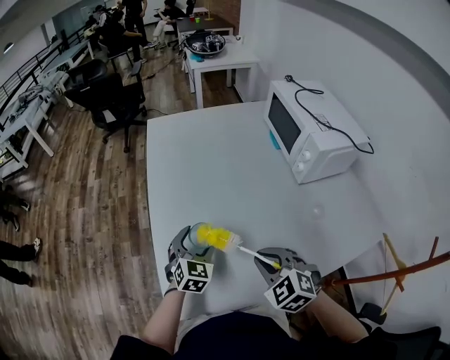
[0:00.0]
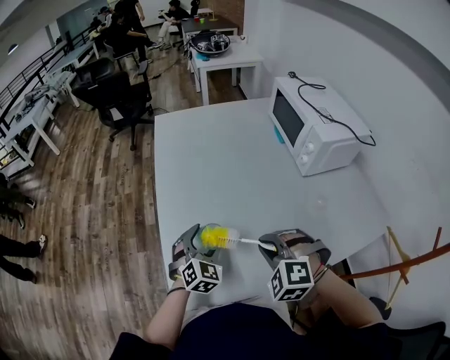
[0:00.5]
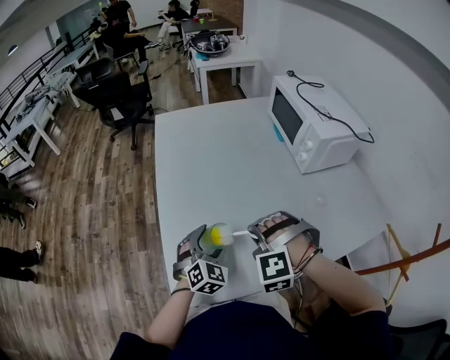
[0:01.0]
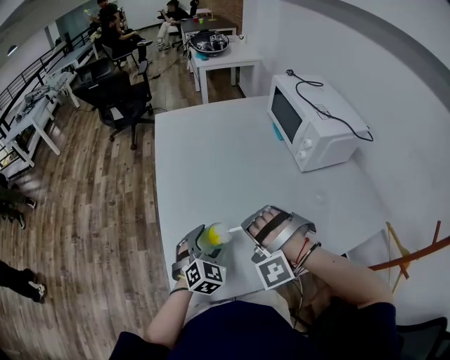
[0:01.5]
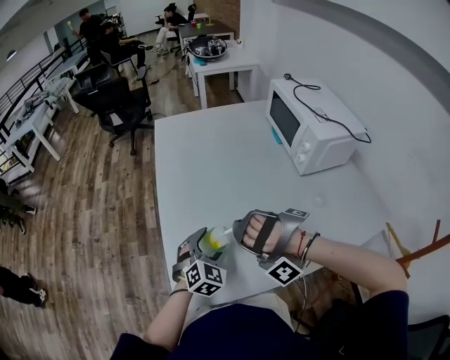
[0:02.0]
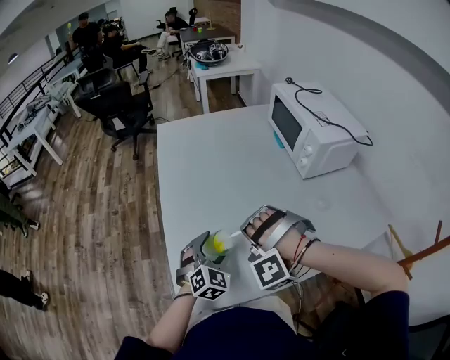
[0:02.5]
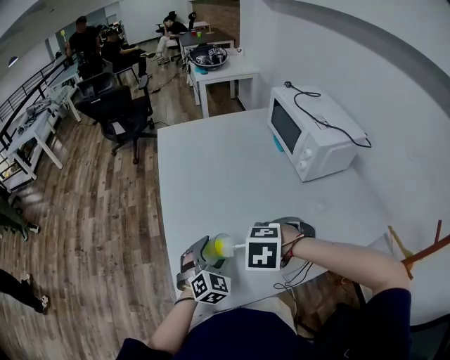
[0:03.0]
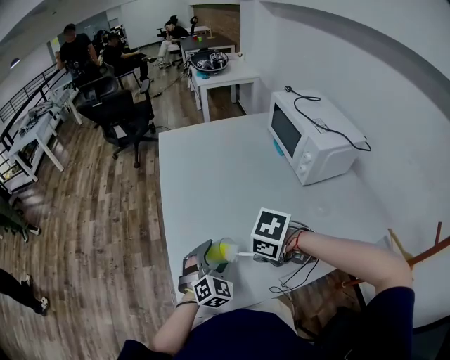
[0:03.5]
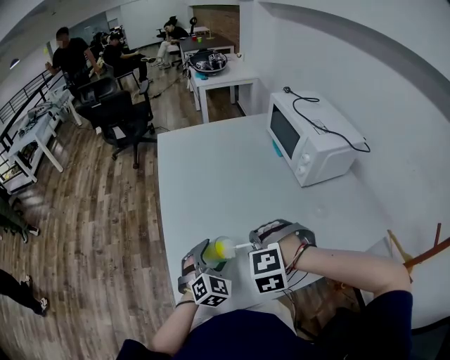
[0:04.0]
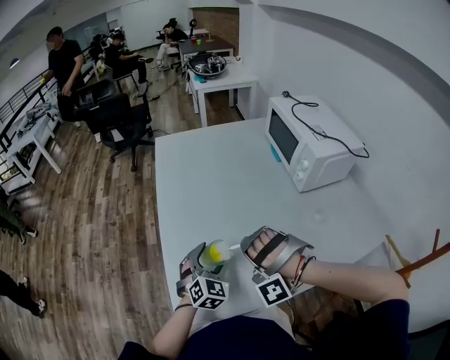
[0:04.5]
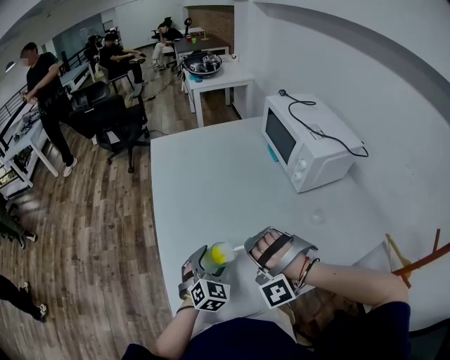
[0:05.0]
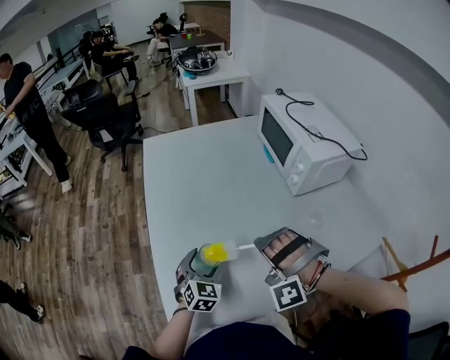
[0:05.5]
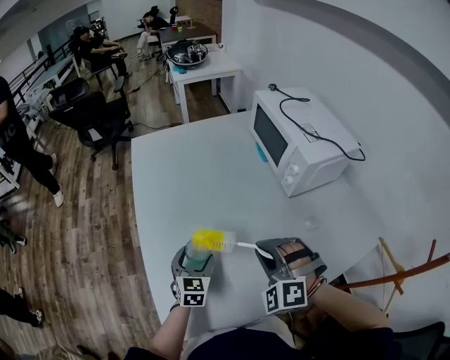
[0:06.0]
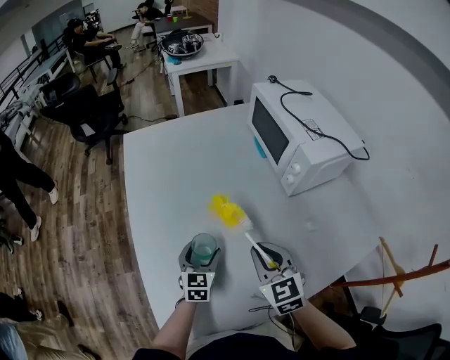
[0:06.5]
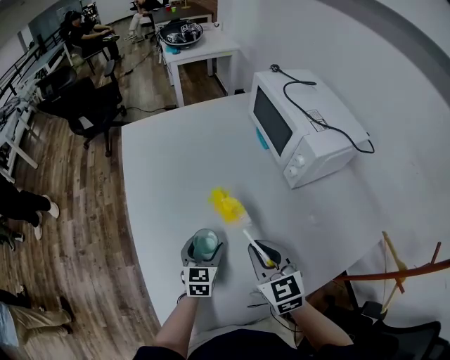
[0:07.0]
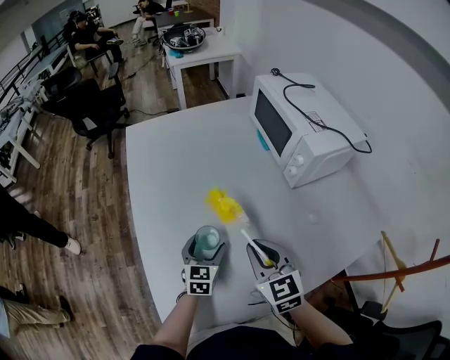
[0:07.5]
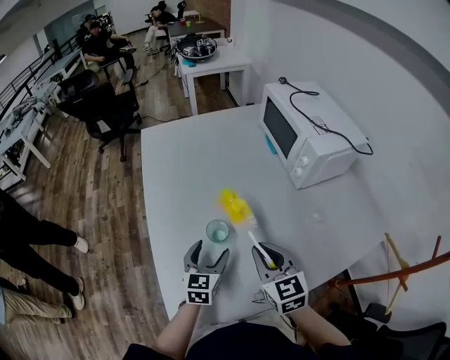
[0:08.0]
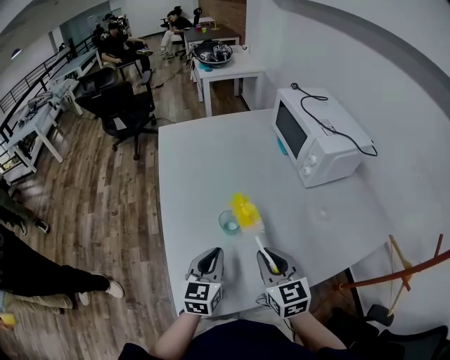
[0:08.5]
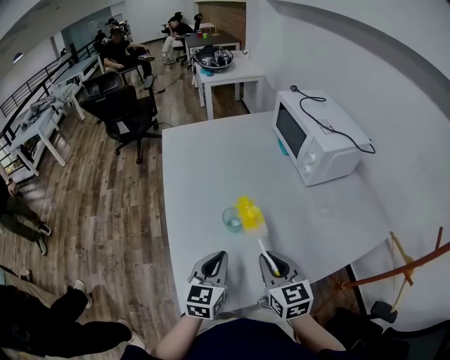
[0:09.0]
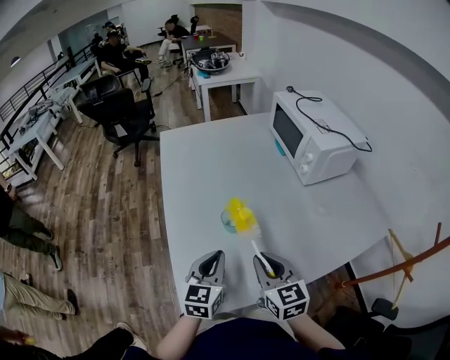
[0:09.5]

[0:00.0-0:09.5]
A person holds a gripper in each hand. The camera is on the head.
0:00.0 to 0:02.0: The right gripper is displaced to the left by approximately 10 cm, and twists some 110 degrees counterclockwise, seen from behind. Meanwhile the left gripper travels backward by about 5 cm.
0:02.0 to 0:04.0: The right gripper shifts by approximately 5 cm, and twists about 60 degrees clockwise, seen from behind.
0:04.0 to 0:05.5: The left gripper ends up about 5 cm from where it was. Meanwhile the right gripper shifts by about 5 cm, and turns by about 30 degrees.
0:05.5 to 0:07.5: The left gripper moves forward, about 5 cm, and rotates approximately 20 degrees, while the right gripper ends up some 5 cm from where it was, and rolls clockwise, seen from behind, by about 100 degrees.
0:07.5 to 0:09.5: The left gripper is displaced backward and upward by roughly 20 cm, and closes its fingers, while the right gripper goes some 10 cm backward.

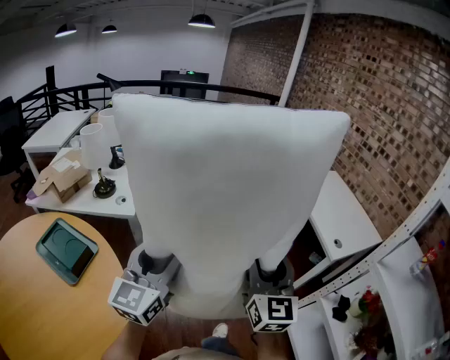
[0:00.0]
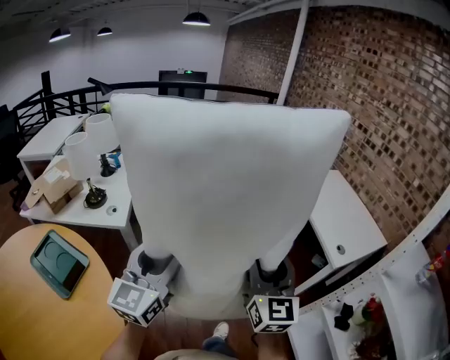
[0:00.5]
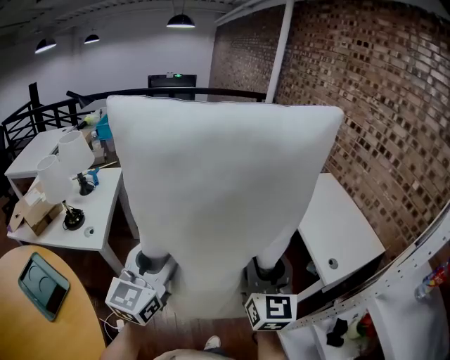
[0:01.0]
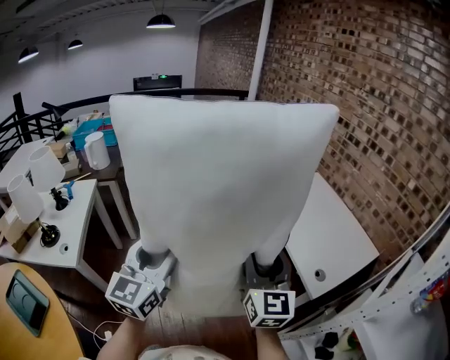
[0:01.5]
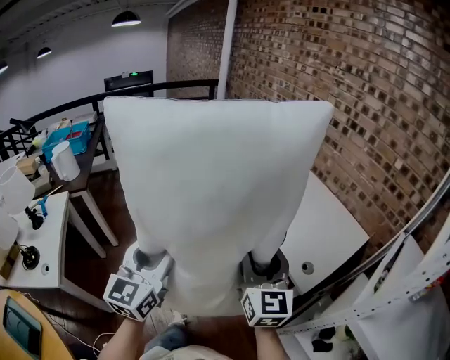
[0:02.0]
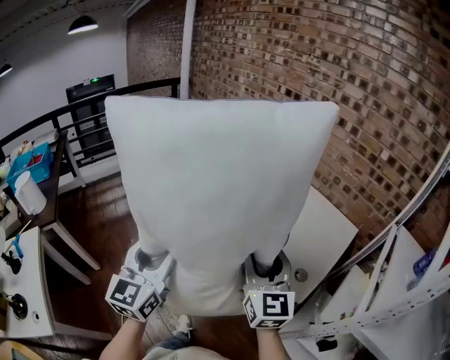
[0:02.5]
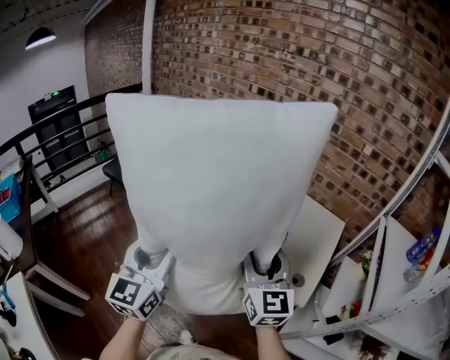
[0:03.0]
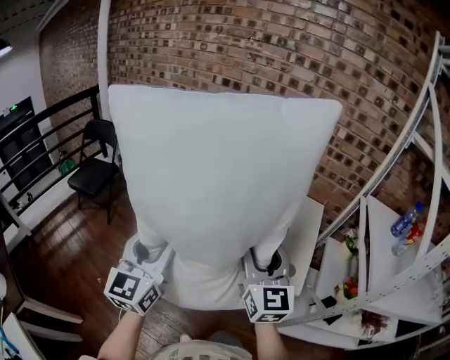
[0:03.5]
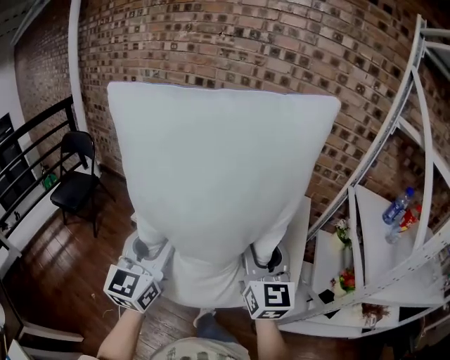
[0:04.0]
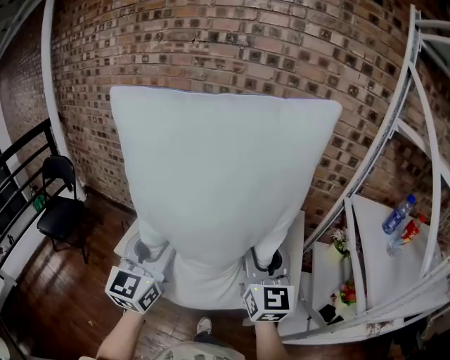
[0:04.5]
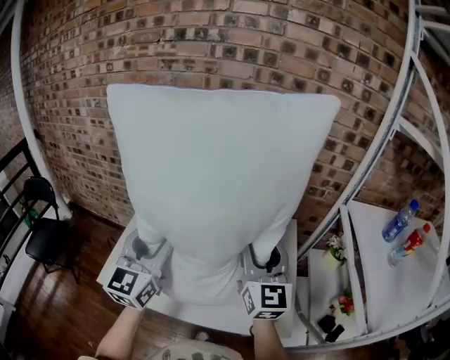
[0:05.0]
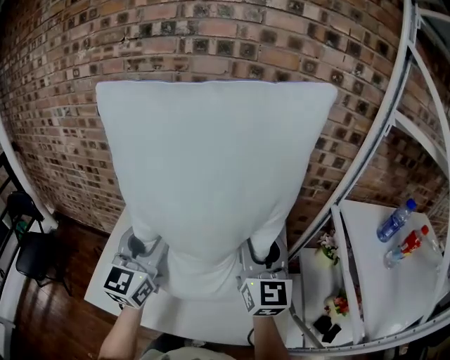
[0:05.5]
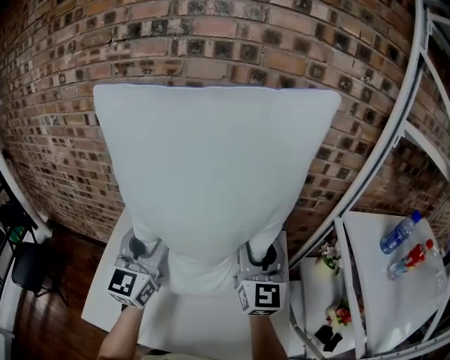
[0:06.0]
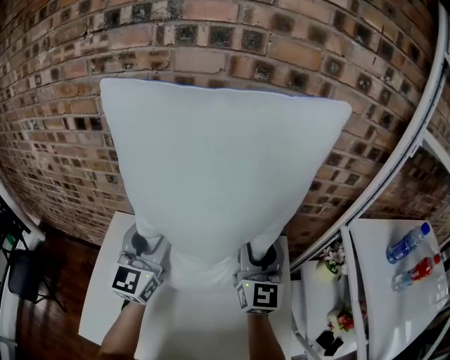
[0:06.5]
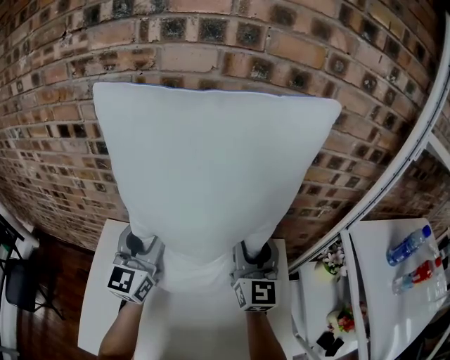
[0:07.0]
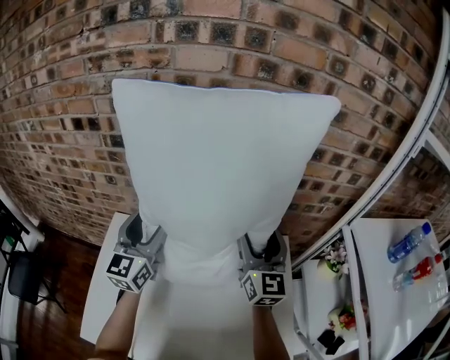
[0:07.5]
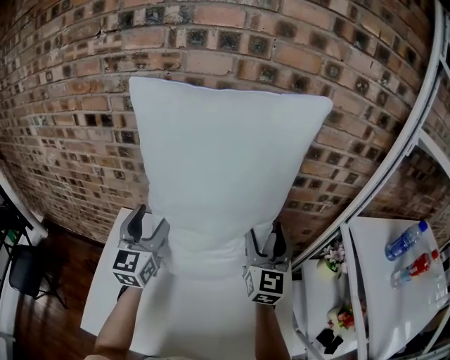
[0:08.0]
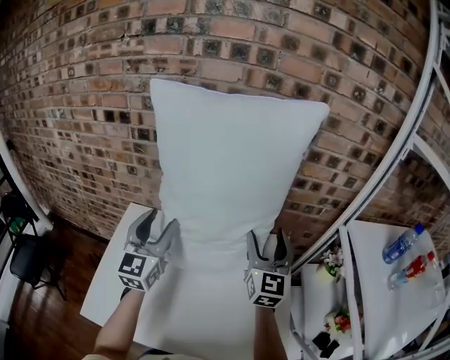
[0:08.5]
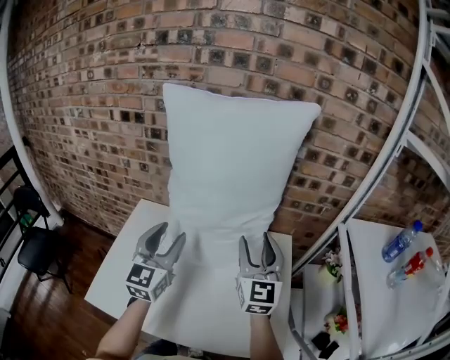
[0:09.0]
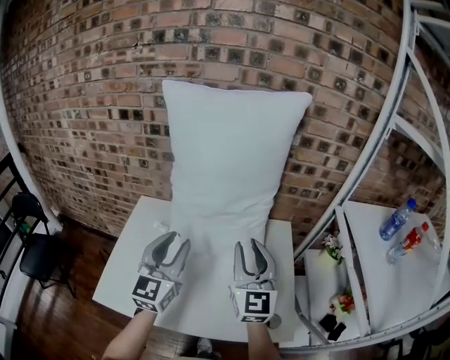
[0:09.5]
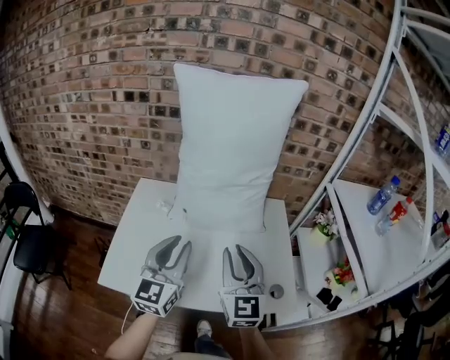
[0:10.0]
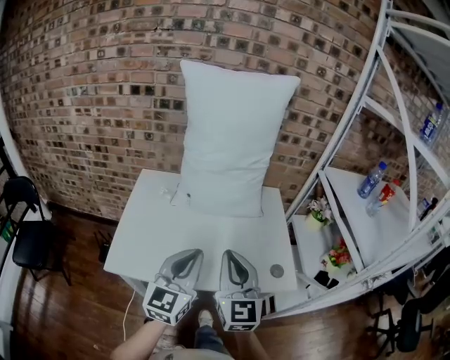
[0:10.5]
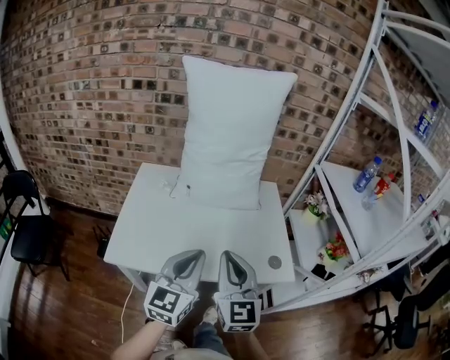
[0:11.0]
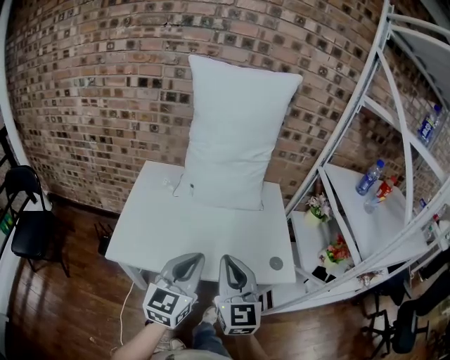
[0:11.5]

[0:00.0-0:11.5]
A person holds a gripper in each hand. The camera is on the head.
0:00.0 to 0:02.0: The pair of grippers is taken forward and to the right, about 40 cm.
0:02.0 to 0:04.0: The right gripper ends up approximately 25 cm from where it was, and rotates approximately 40 degrees; the left gripper moves about 40 cm, and turns by roughly 40 degrees.
0:04.0 to 0:06.0: The two grippers go about 40 cm forward.
0:06.0 to 0:07.5: The two grippers go approximately 15 cm forward and downward. The right gripper opens its fingers.
0:07.5 to 0:09.5: The two grippers go some 20 cm backward. The left gripper closes its fingers. Meanwhile the right gripper closes up.
0:09.5 to 0:11.5: Both grippers move backward, approximately 25 cm. The left gripper closes. The right gripper closes up.

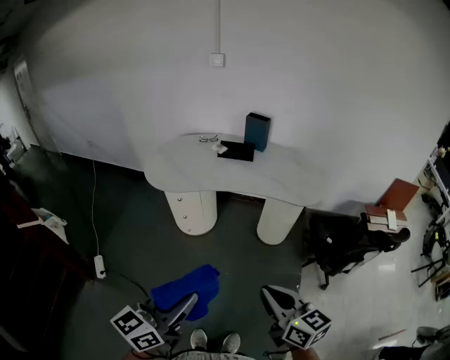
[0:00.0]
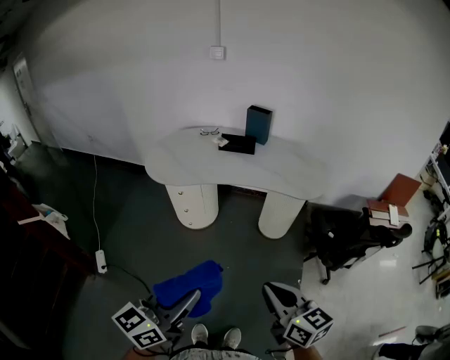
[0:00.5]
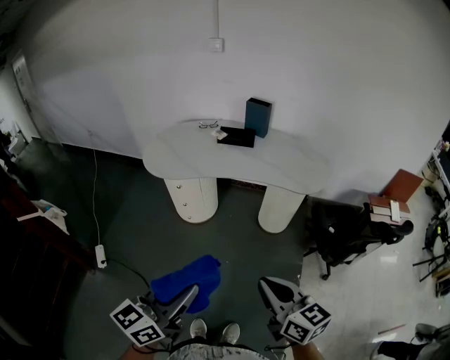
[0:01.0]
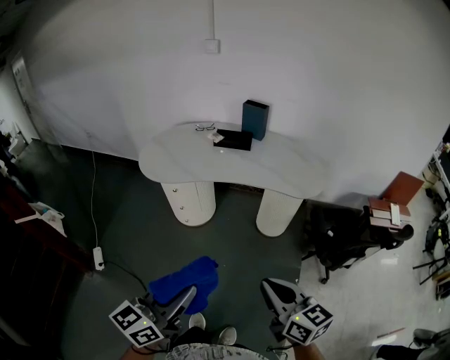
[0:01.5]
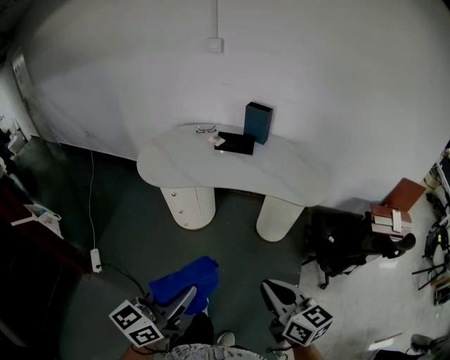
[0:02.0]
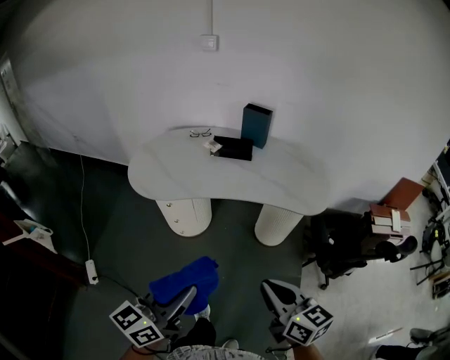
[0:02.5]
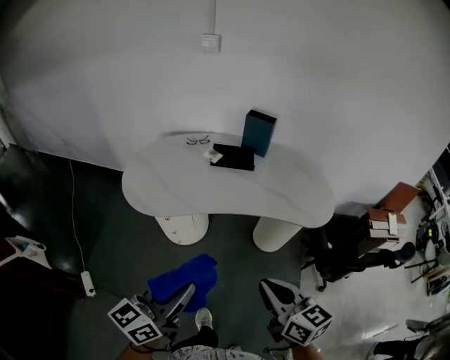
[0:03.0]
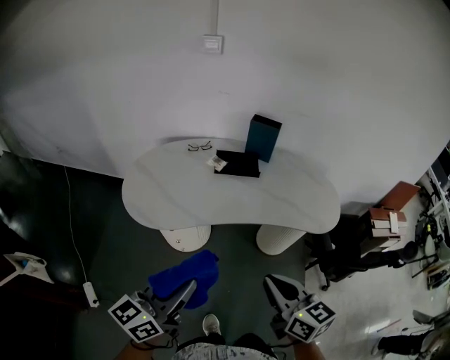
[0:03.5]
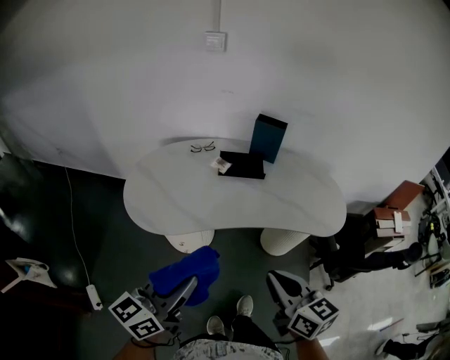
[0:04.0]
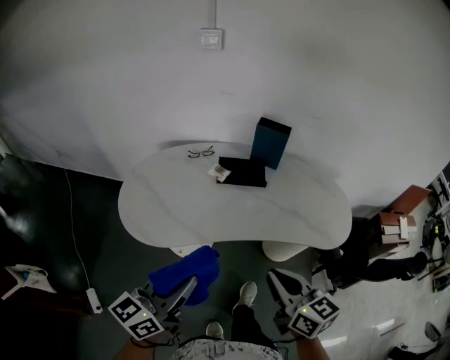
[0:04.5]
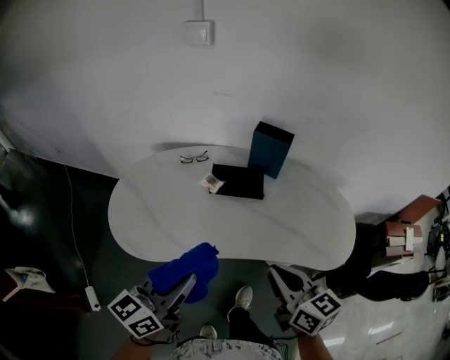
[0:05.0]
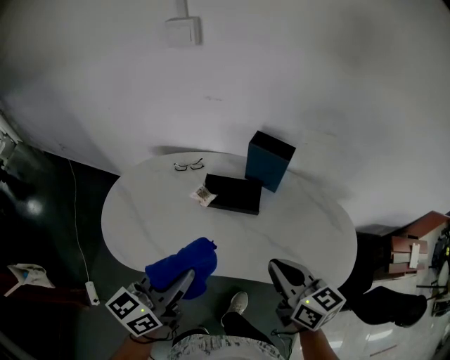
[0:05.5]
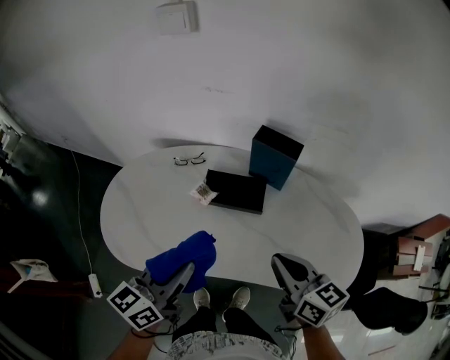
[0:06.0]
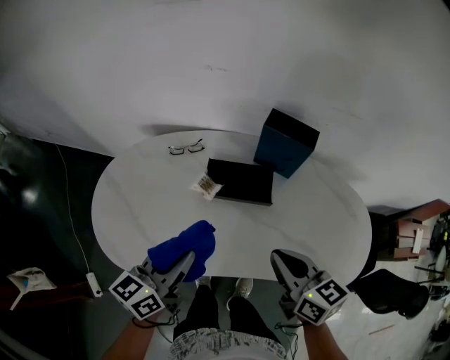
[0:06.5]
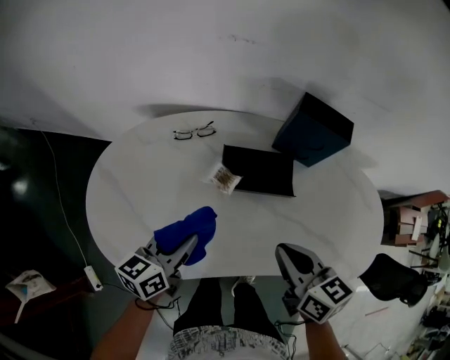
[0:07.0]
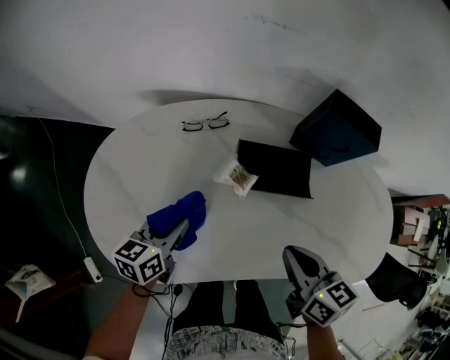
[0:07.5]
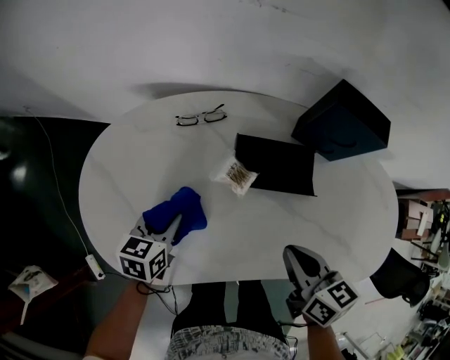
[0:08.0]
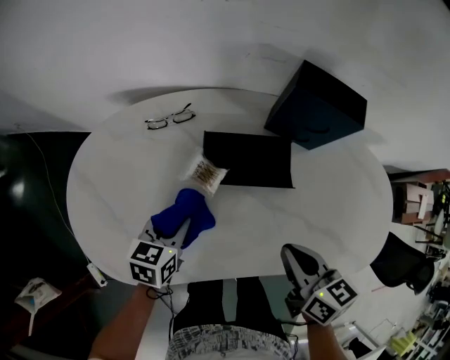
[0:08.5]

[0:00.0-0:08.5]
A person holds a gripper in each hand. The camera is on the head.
0:00.0 to 0:02.0: Both grippers travel together forward, about 5 cm.
0:02.0 to 0:04.0: Both grippers move forward and to the left, some 30 cm.
0:04.0 to 0:06.5: The grippers both shift forward by some 35 cm.
0:06.5 to 0:08.5: The right gripper is displaced downward by about 10 cm, while the left gripper shifts some 25 cm downward and forward, and tilts its fingers some 30 degrees downward.
